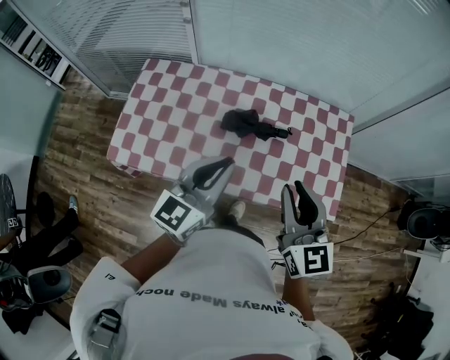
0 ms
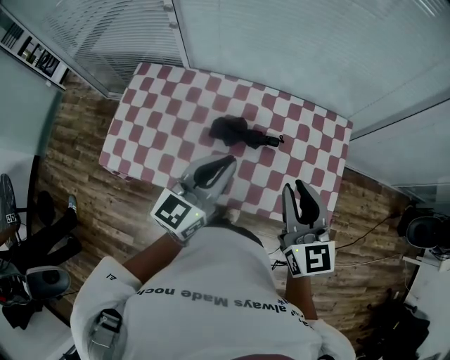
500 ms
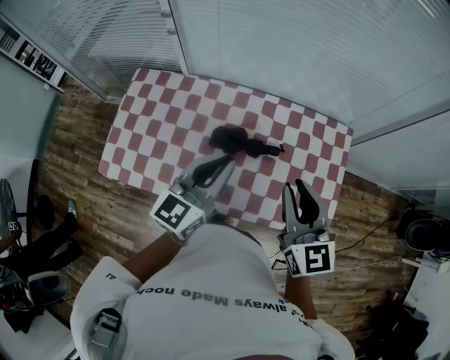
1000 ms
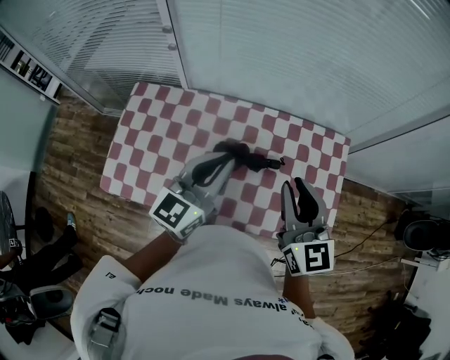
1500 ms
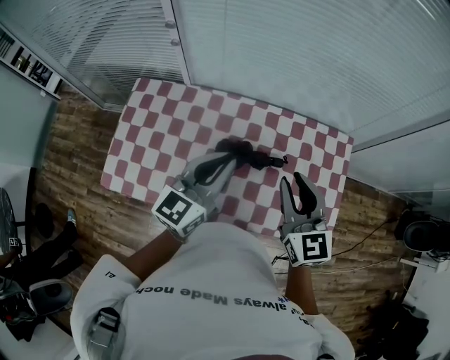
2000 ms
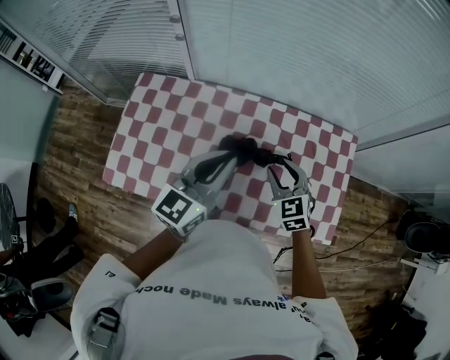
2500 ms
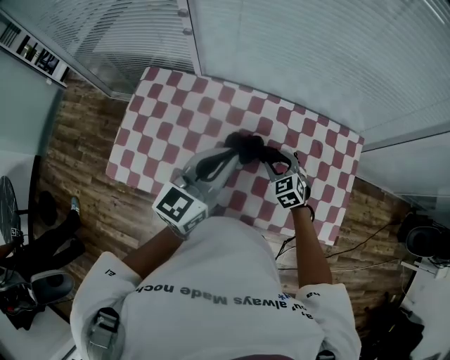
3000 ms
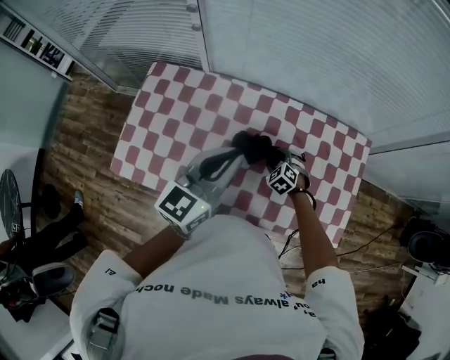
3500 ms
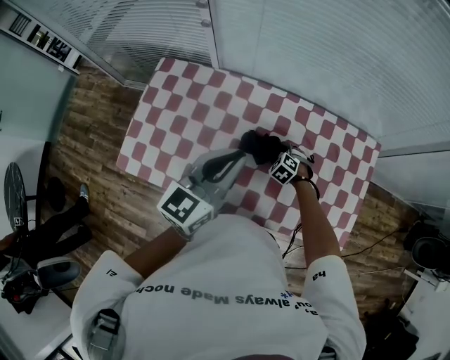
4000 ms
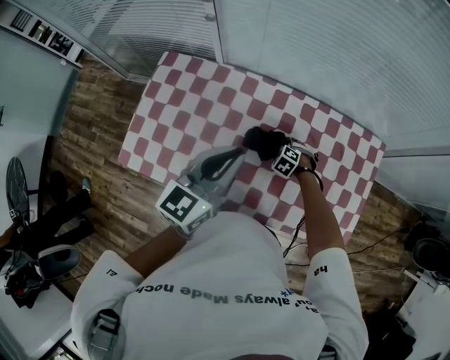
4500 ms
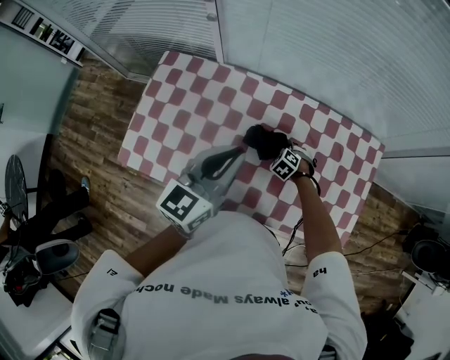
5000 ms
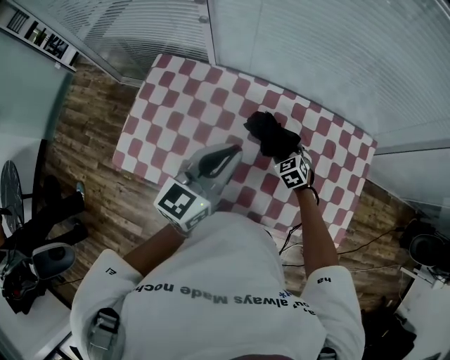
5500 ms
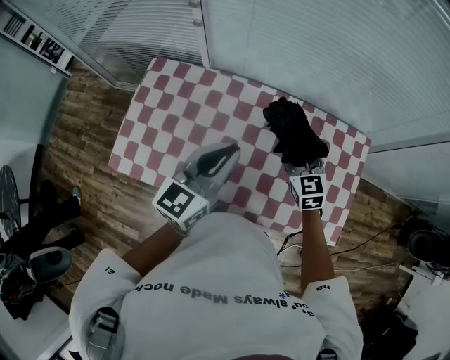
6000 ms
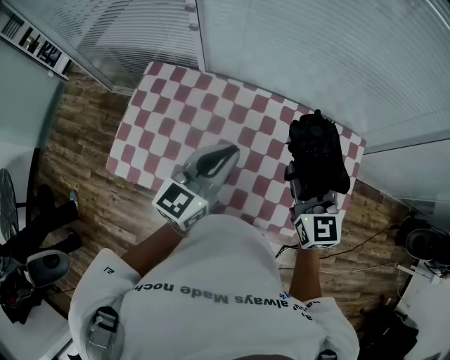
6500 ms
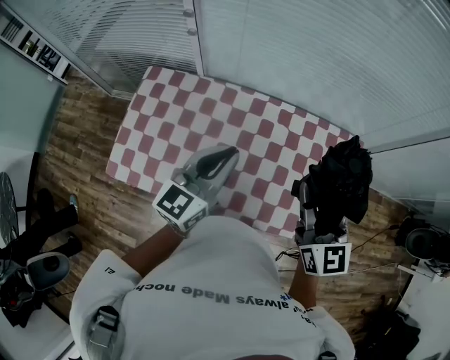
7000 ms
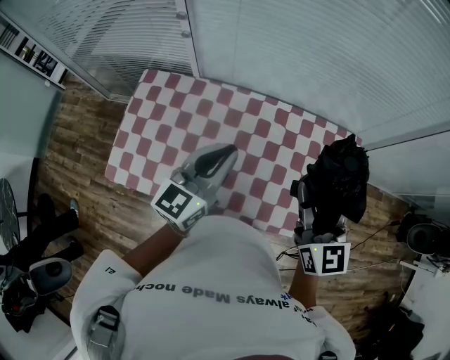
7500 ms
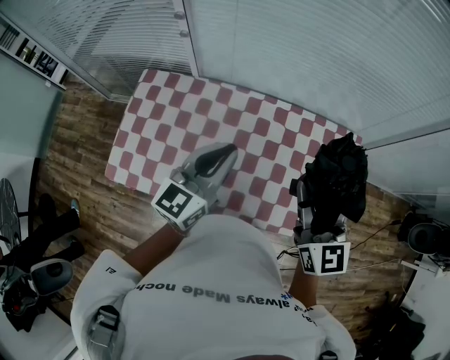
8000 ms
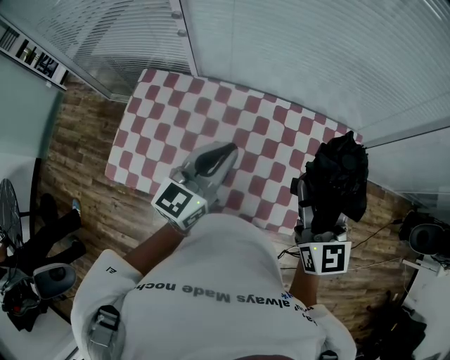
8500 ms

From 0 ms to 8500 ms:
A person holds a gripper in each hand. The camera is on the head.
From 0 ms to 2000 ms: Both grippers move forward, roughly 15 cm.
From 2000 ms to 4000 ms: The left gripper travels to the left by roughly 5 cm. Meanwhile the right gripper is displaced downward by some 40 cm, tips its fingers downward by some 60 degrees, and opens its fingers.
From 4000 ms to 6500 ms: The right gripper goes about 40 cm upward, and points its fingers roughly 60 degrees further upward.
From 6500 ms to 8500 ms: The right gripper heads upward, covering roughly 5 cm.

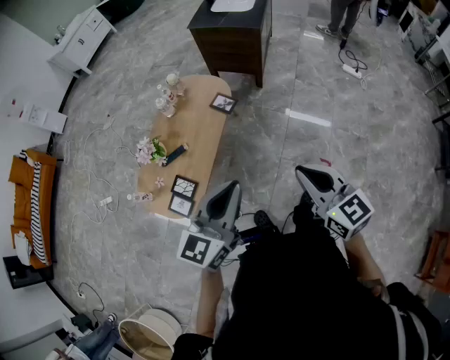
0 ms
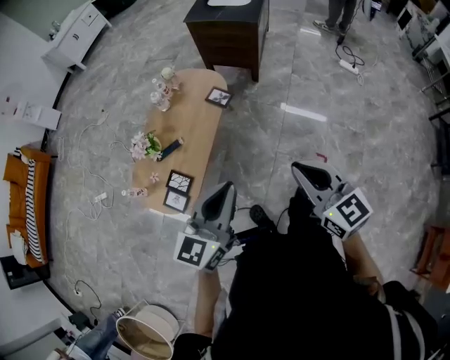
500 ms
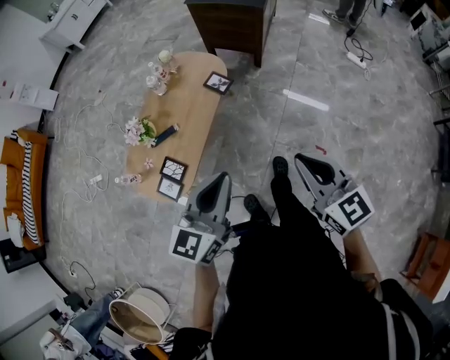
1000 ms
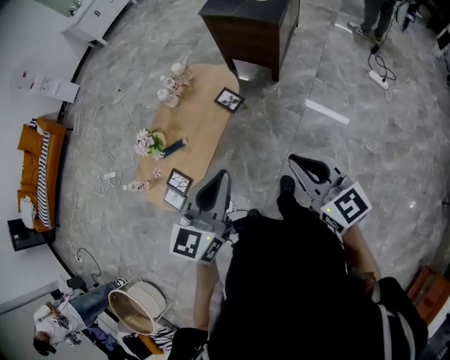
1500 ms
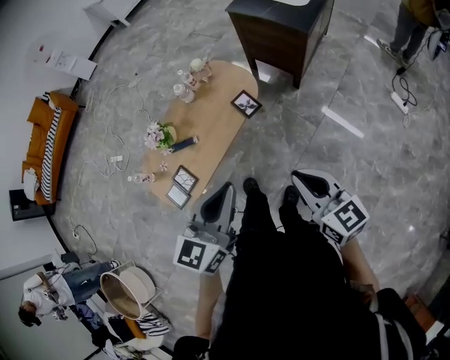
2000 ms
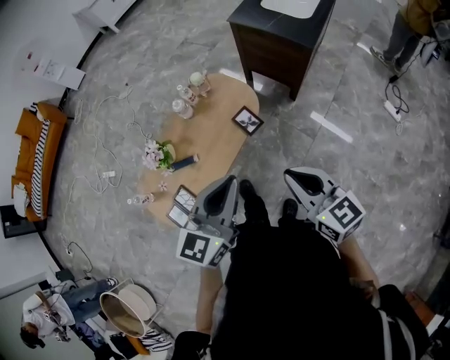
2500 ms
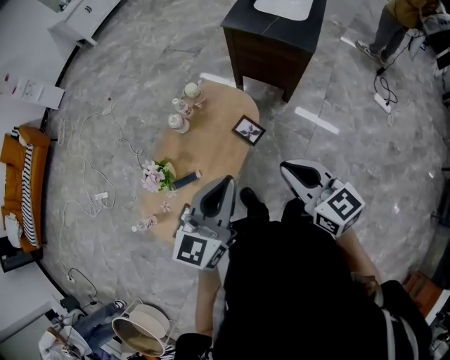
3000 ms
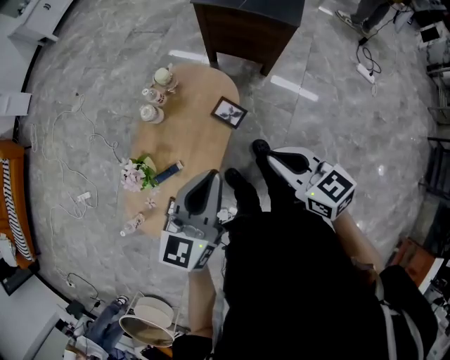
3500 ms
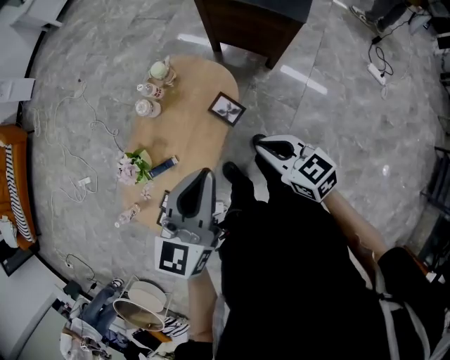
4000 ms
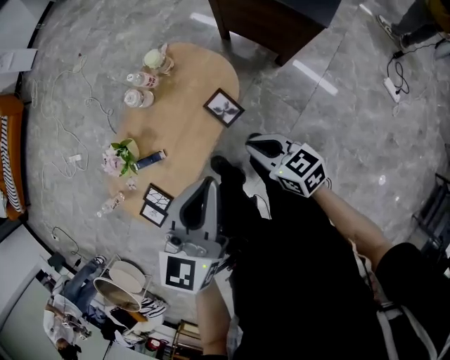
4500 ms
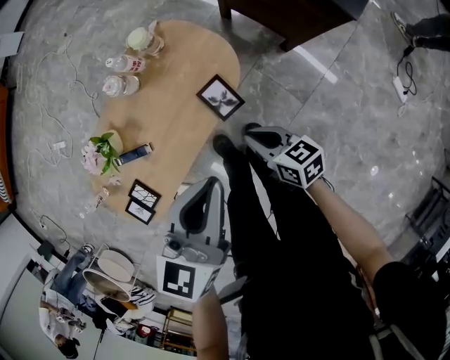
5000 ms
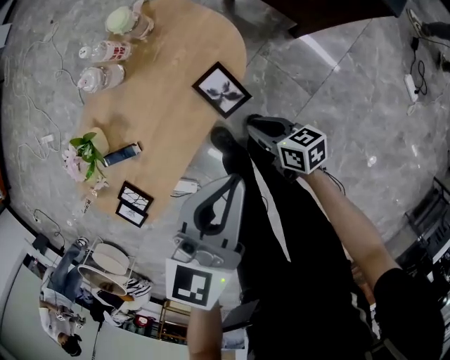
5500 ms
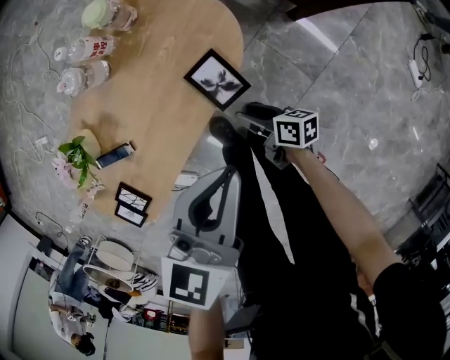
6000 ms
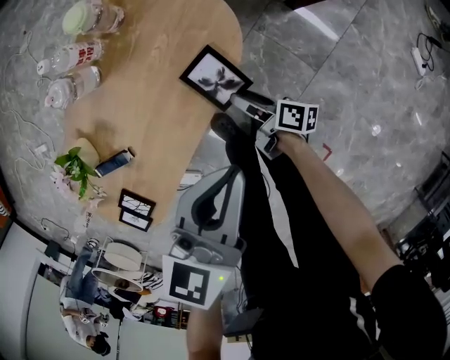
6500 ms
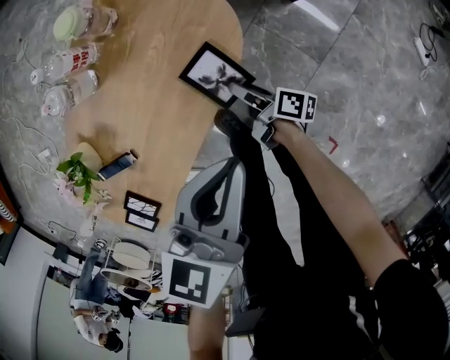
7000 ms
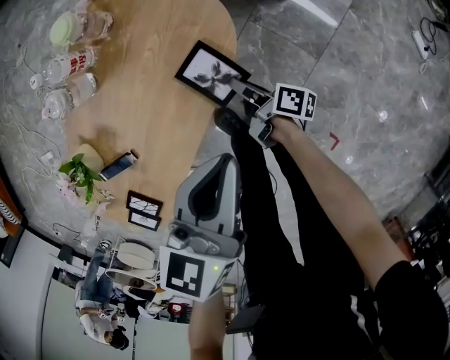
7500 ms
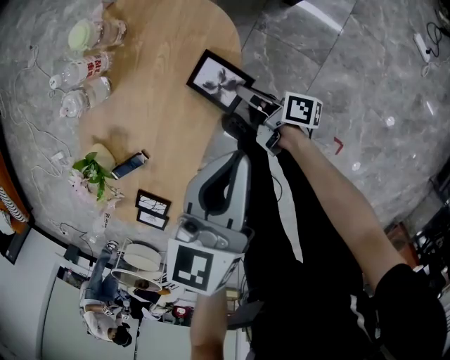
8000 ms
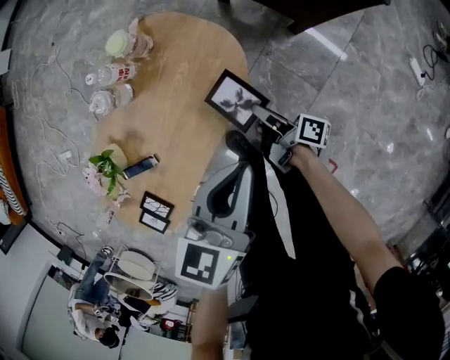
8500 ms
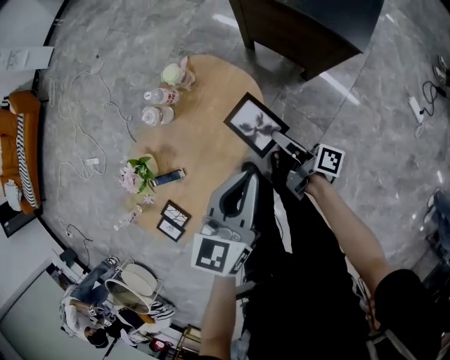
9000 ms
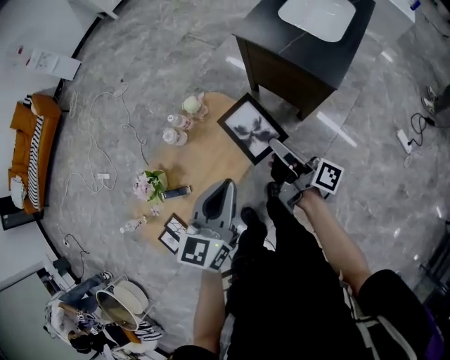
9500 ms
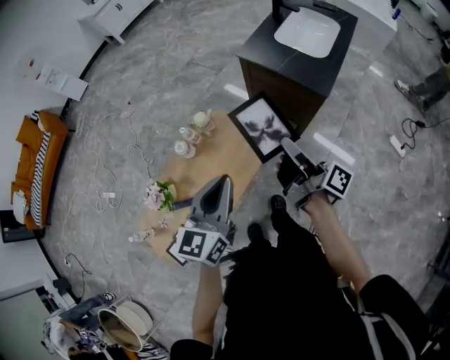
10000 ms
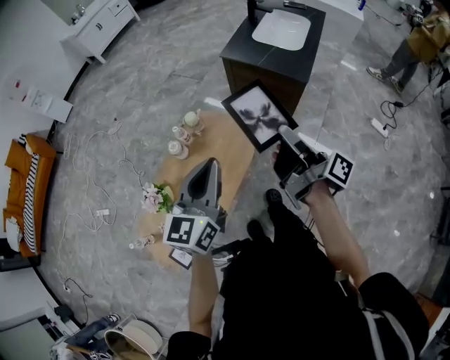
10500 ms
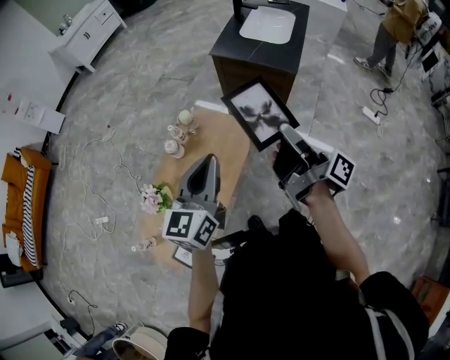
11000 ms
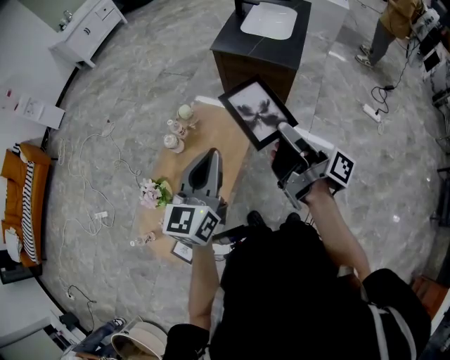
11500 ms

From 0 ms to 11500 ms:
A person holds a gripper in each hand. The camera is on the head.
From 0 ms to 2000 ms: Both grippers move forward and to the right, roughly 20 cm. The right gripper swivels about 20 degrees. Meanwhile the left gripper rotates some 20 degrees.
From 2000 ms to 4000 ms: The left gripper heads forward, covering approximately 30 cm, while the right gripper is displaced forward and downward by roughly 30 cm.
From 4000 ms to 6000 ms: The left gripper travels downward by about 30 cm. The right gripper is displaced downward by roughly 40 cm, rolls clockwise, seen from behind, by some 40 degrees, and opens up.
From 6000 ms to 7500 ms: The right gripper shifts roughly 5 cm forward, swivels about 30 degrees, and closes up. Meanwhile the left gripper travels downward by approximately 5 cm.
From 7500 ms to 9500 ms: The left gripper travels upward by about 30 cm, and changes its angle by some 20 degrees. The right gripper travels upward by approximately 50 cm, and tilts its fingers about 30 degrees upward.
From 9500 ms to 11500 ms: The right gripper shifts roughly 25 cm backward and upward, and swivels some 20 degrees; the left gripper moves backward, upward and to the left, about 15 cm.

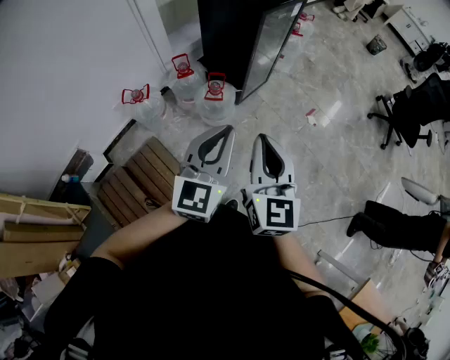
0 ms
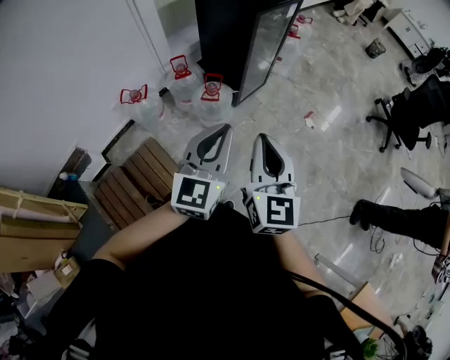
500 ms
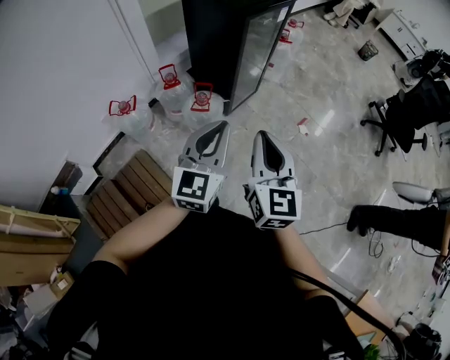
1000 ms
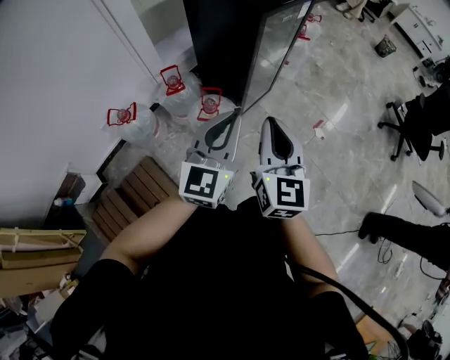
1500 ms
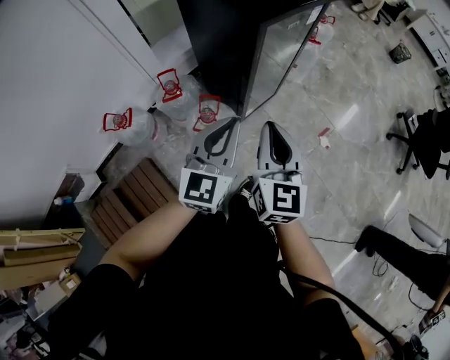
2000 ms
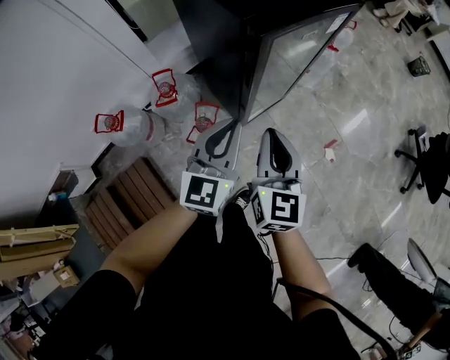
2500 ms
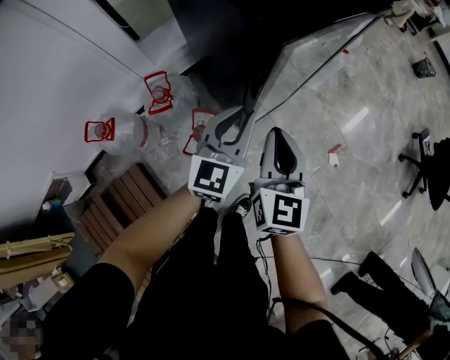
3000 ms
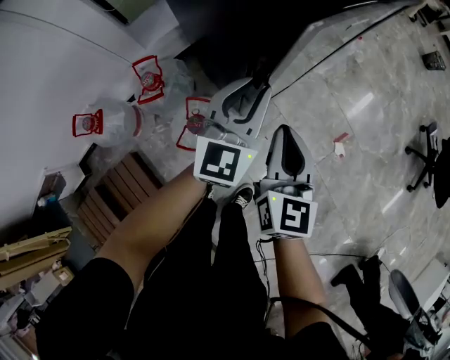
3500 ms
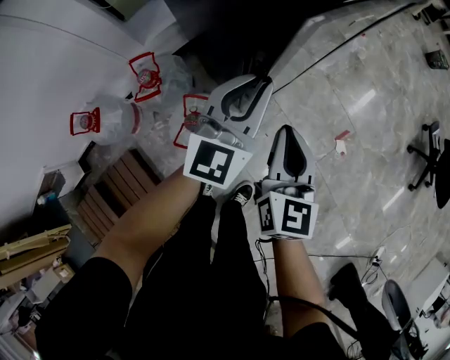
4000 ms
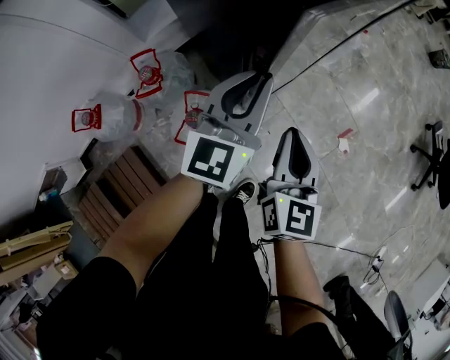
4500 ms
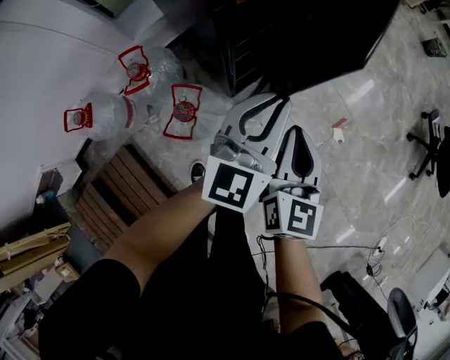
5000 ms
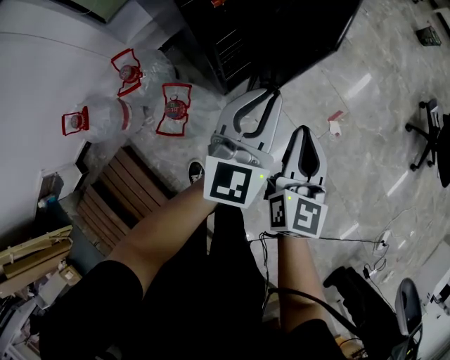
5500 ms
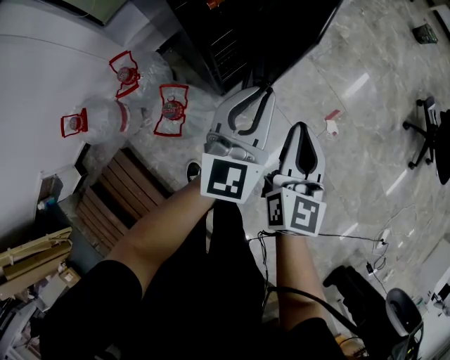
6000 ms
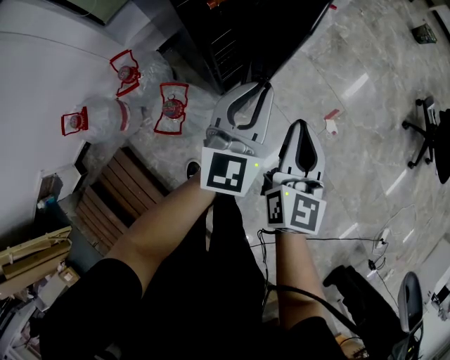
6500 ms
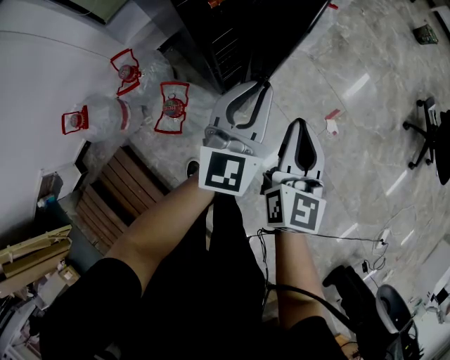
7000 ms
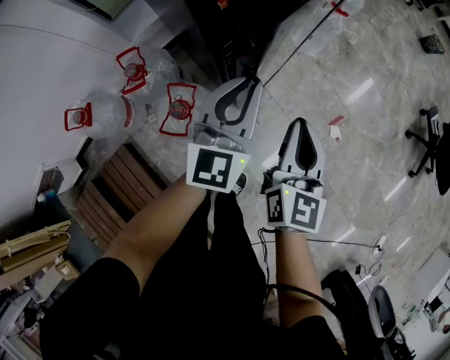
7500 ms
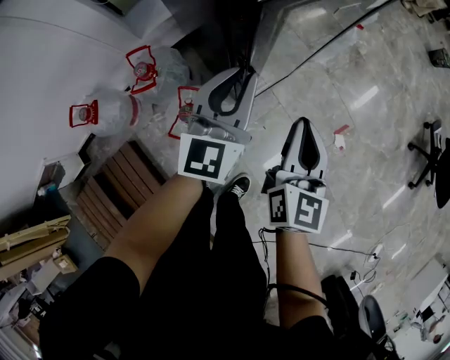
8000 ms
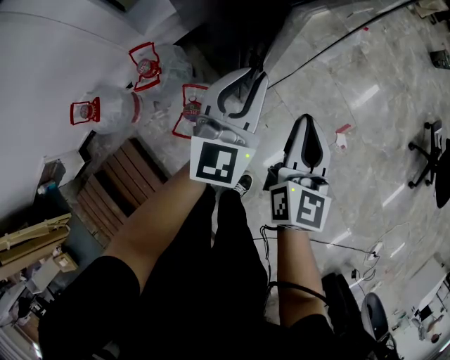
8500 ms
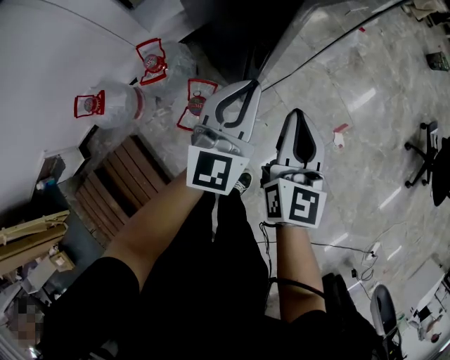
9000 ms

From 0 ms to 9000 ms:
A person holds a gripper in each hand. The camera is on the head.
From 0 ms to 2000 ms: The two grippers go some 35 cm forward and downward.
From 2000 ms to 4500 ms: The right gripper goes about 30 cm downward and forward. Meanwhile the left gripper heads forward and downward, covering some 30 cm.
From 4500 ms to 7000 ms: The two grippers go some 10 cm to the right.
From 7000 ms to 9000 ms: Both grippers travel together to the left, about 10 cm.
